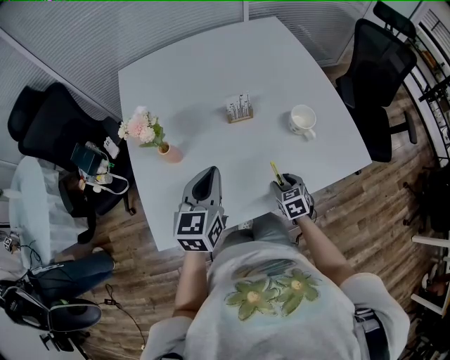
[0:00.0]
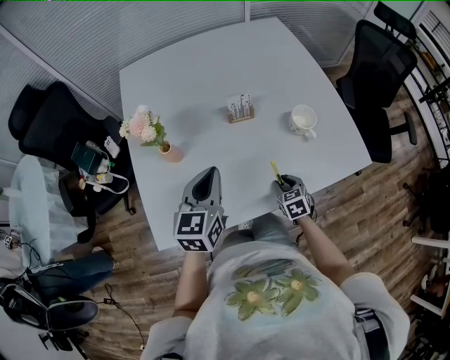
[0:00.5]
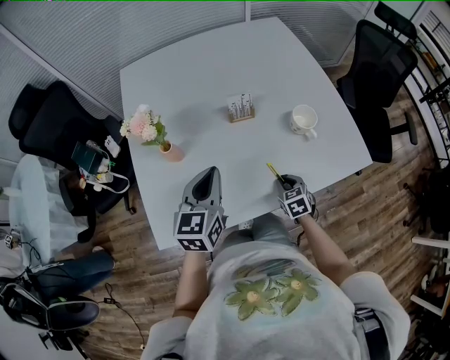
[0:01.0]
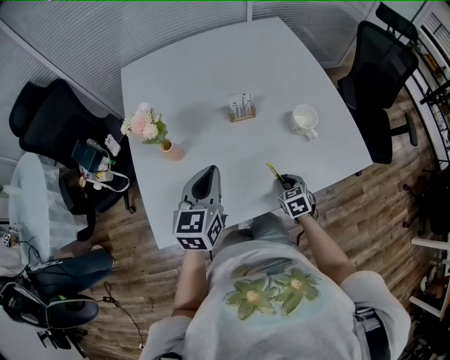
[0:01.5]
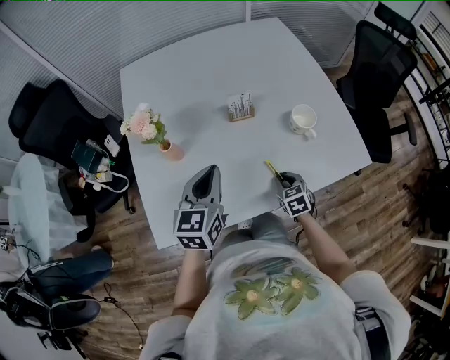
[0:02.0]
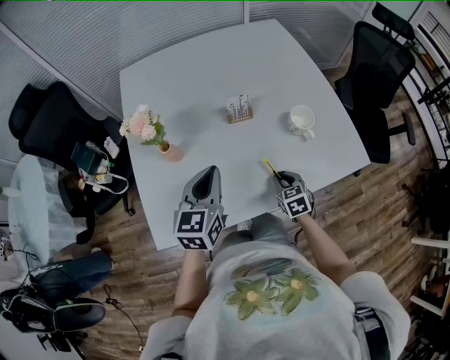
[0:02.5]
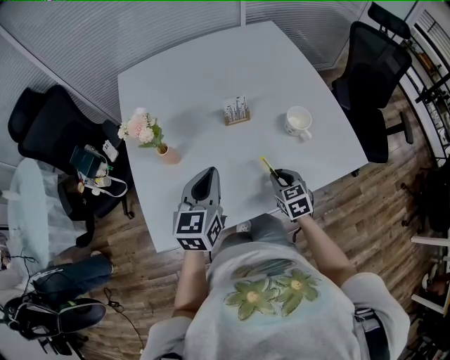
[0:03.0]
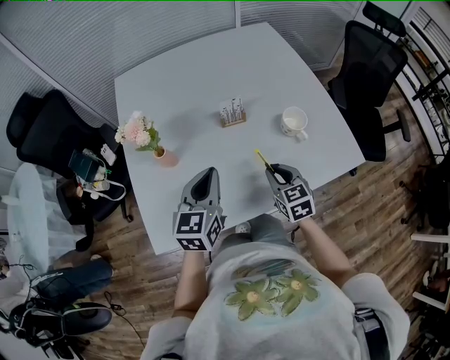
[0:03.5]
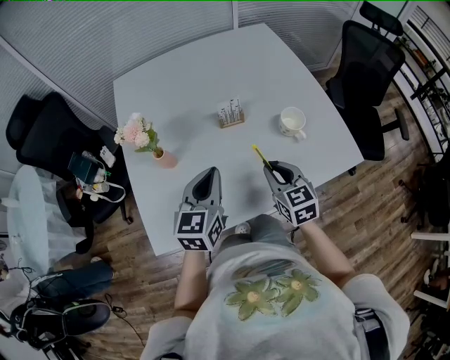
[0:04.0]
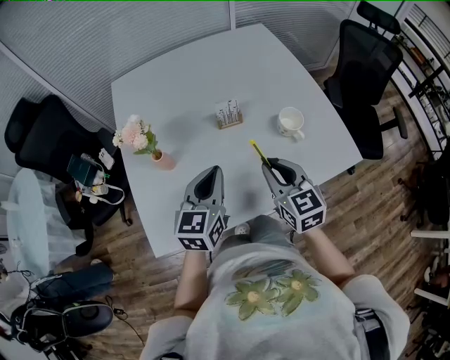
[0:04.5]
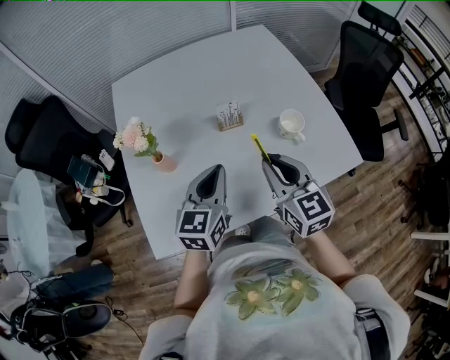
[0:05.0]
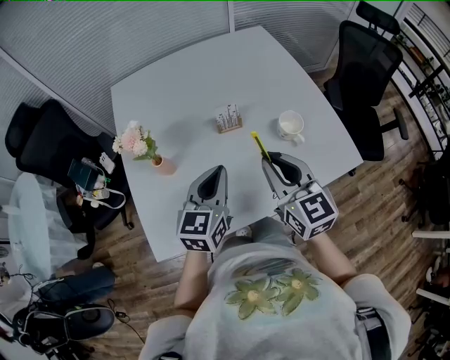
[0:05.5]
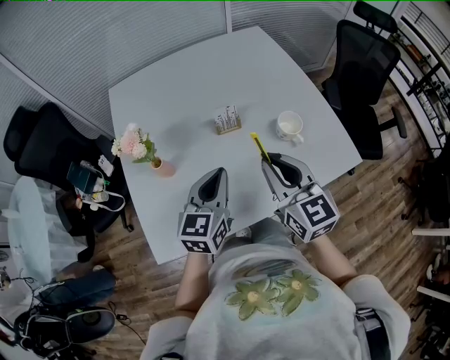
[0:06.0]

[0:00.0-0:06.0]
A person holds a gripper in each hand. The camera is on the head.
0:00.0 to 0:02.0: The right gripper closes.
0:02.0 to 0:04.0: The right gripper goes approximately 20 cm upward, and swivels about 20 degrees.
0:04.0 to 0:06.0: The right gripper is displaced upward by some 15 cm.

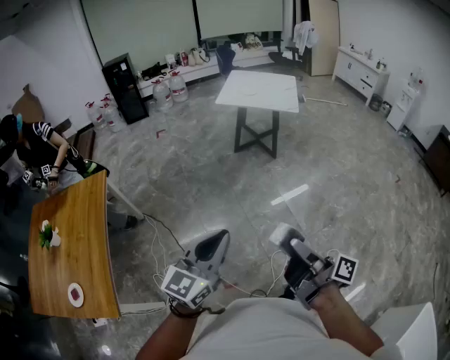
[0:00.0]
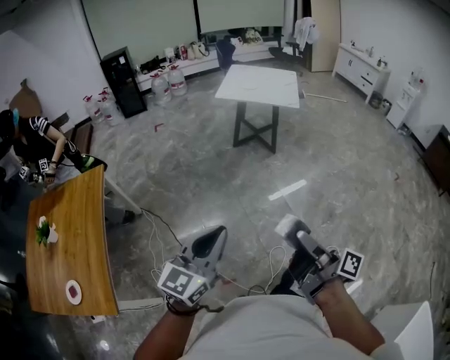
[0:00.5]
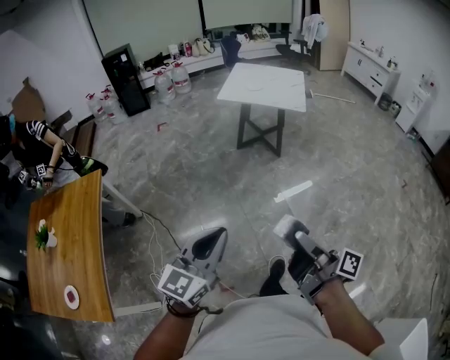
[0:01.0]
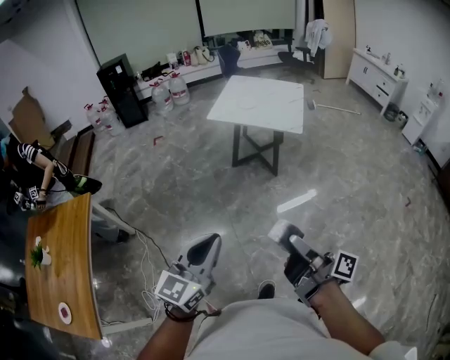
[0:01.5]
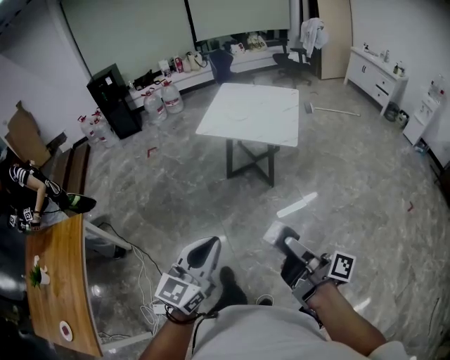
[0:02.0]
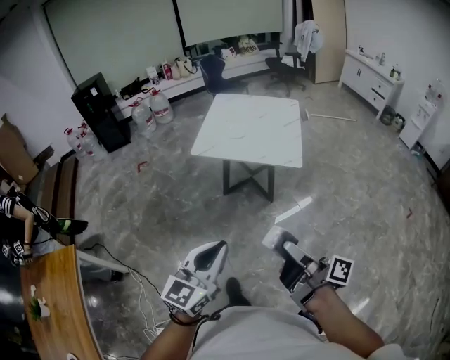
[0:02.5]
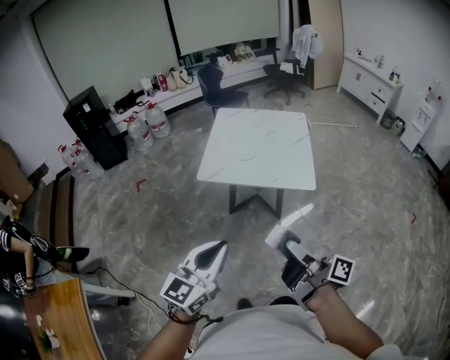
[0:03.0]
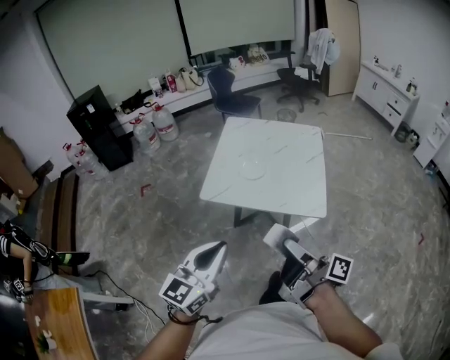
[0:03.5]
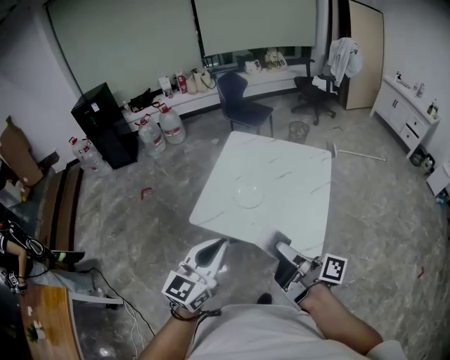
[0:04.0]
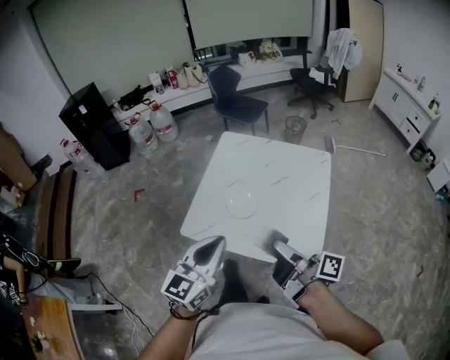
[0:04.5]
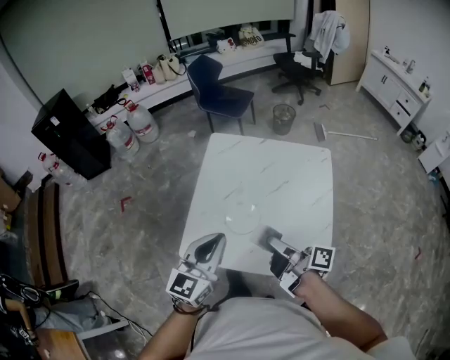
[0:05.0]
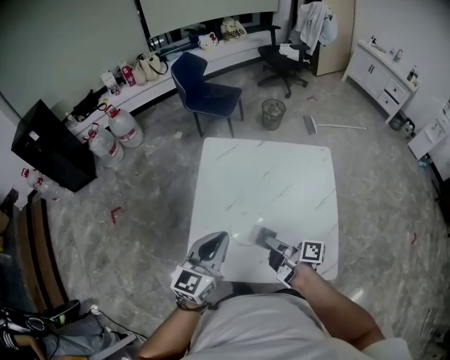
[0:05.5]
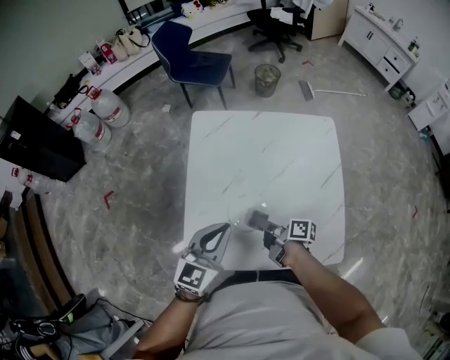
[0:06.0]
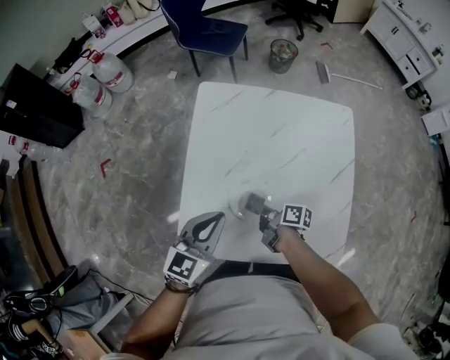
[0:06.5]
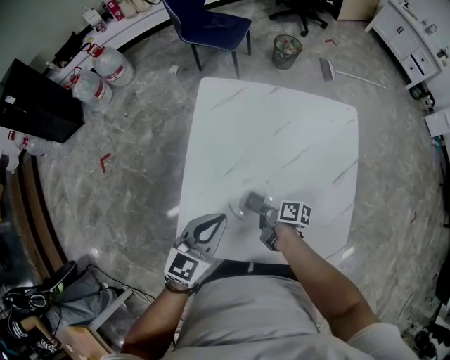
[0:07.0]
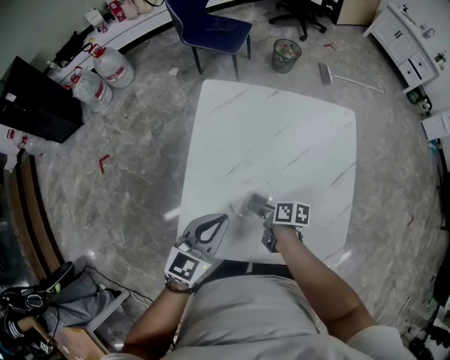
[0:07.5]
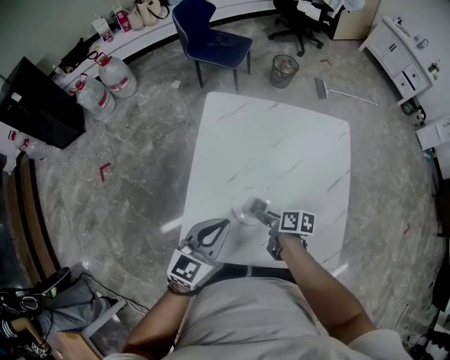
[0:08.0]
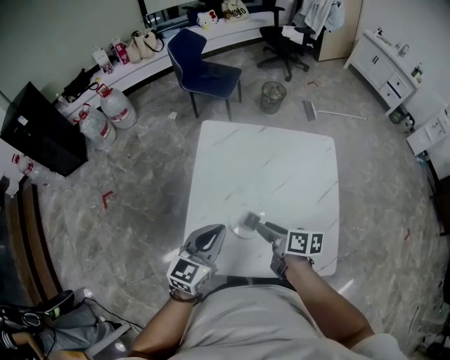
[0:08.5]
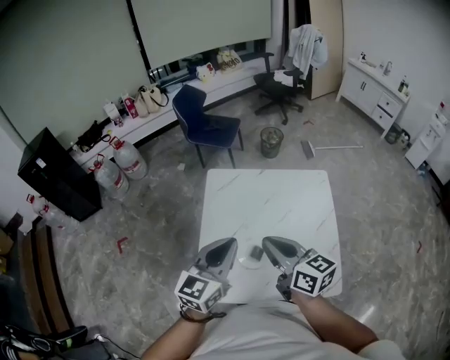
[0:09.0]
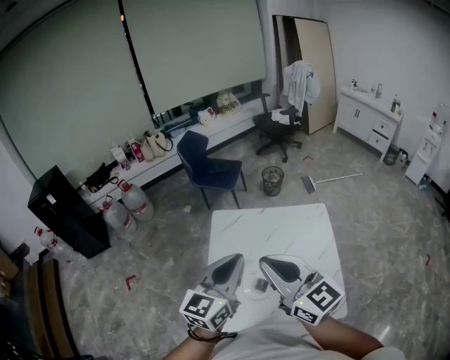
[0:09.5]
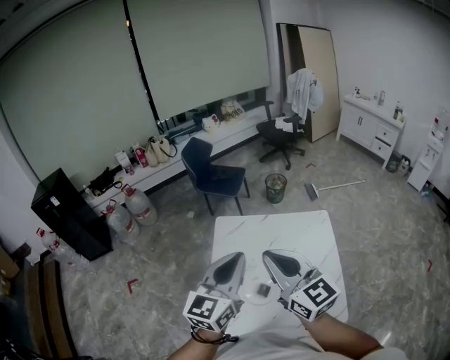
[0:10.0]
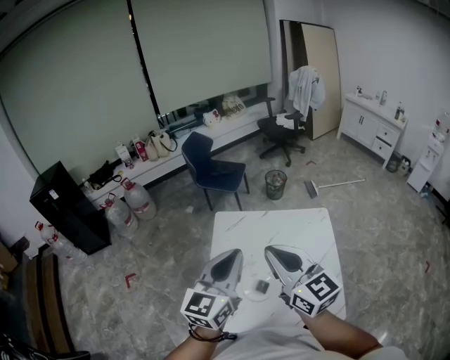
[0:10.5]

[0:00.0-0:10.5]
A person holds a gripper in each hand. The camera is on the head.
0:00.0 to 0:02.0: The left gripper ends up about 50 cm from where it was.
0:02.0 to 0:04.0: The left gripper changes place by approximately 70 cm.
0:04.0 to 0:06.5: The left gripper moves approximately 50 cm, and changes its angle by approximately 20 degrees.
0:06.5 to 0:08.5: The left gripper heads upward, covering roughly 5 cm.
0:08.5 to 0:10.5: The left gripper is displaced upward by approximately 25 cm.

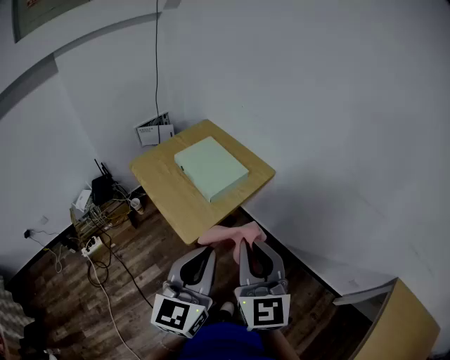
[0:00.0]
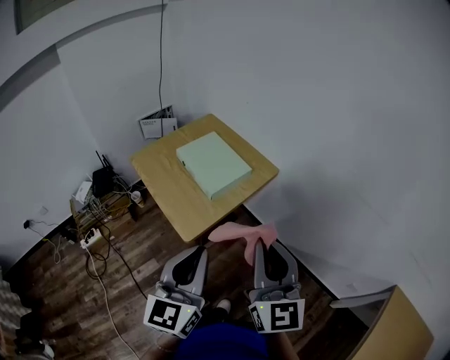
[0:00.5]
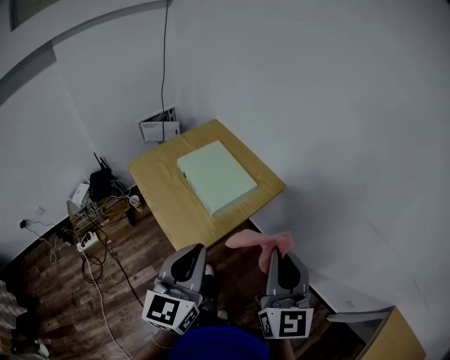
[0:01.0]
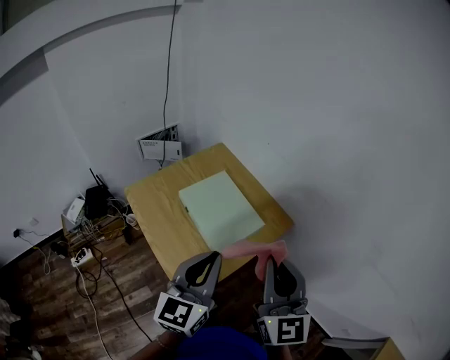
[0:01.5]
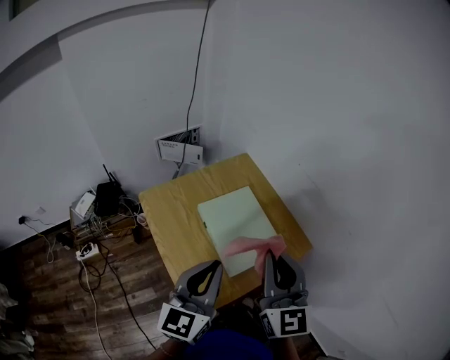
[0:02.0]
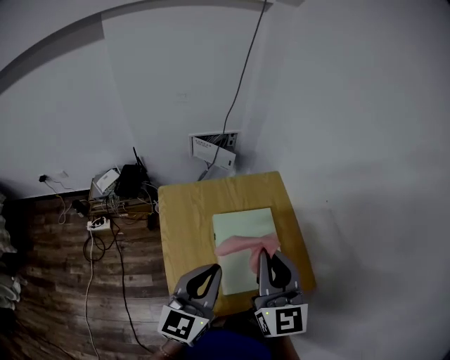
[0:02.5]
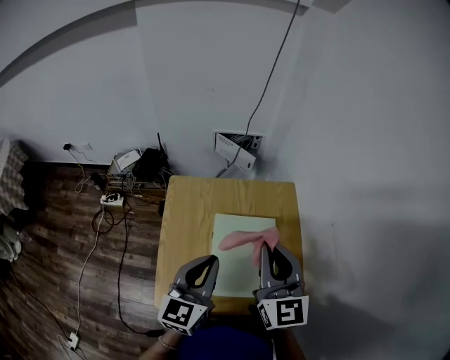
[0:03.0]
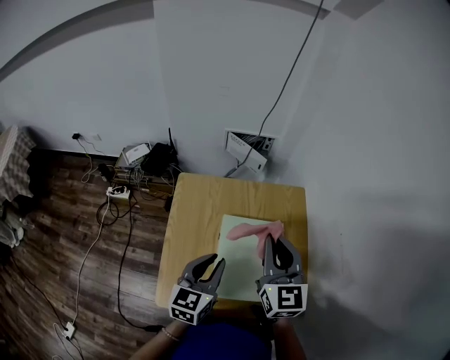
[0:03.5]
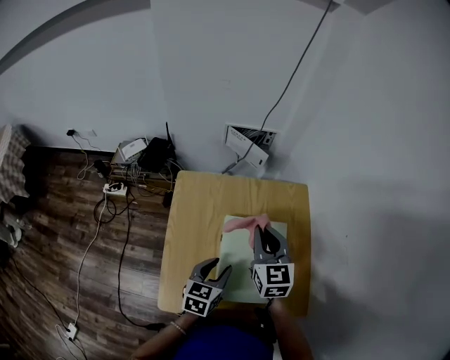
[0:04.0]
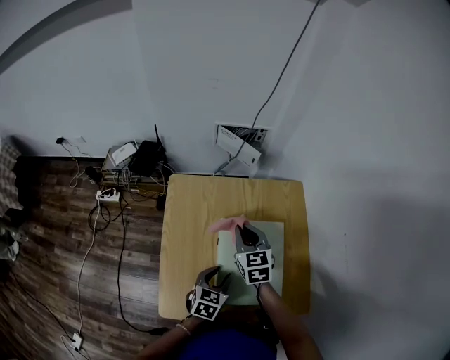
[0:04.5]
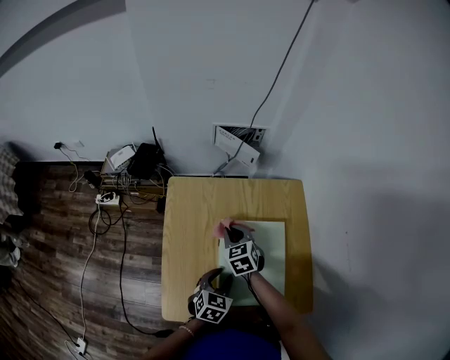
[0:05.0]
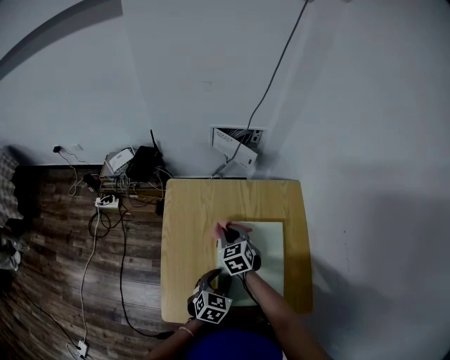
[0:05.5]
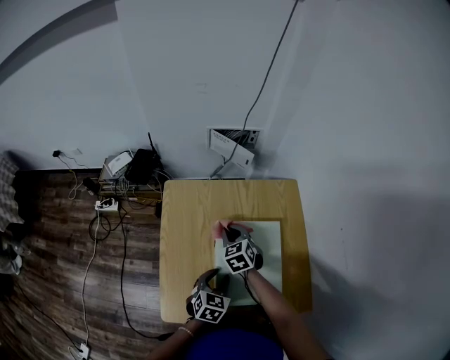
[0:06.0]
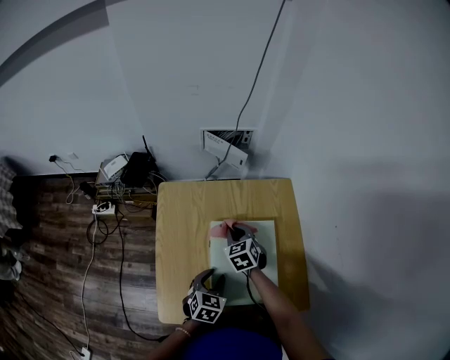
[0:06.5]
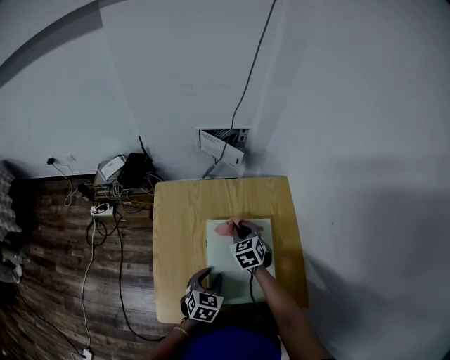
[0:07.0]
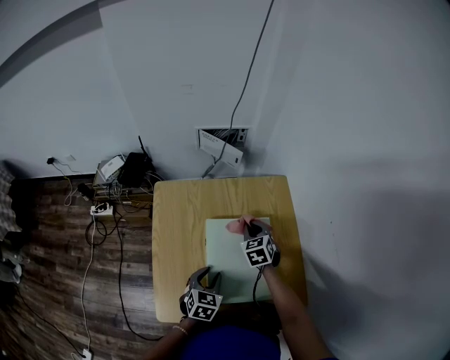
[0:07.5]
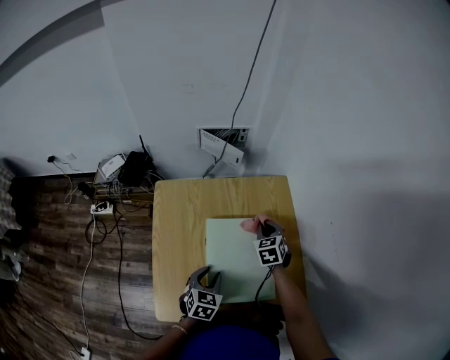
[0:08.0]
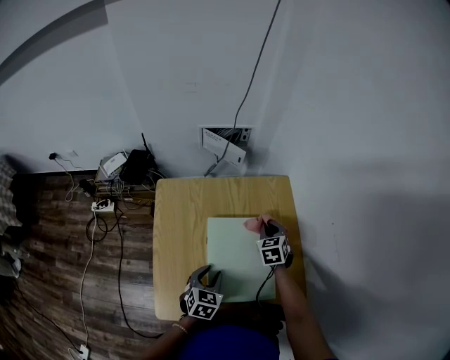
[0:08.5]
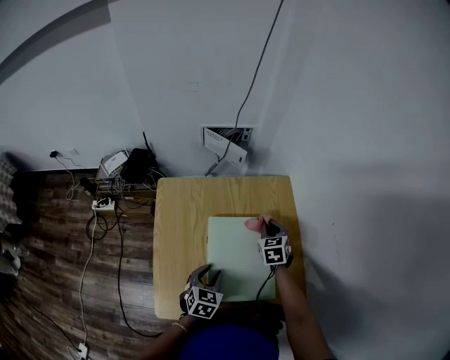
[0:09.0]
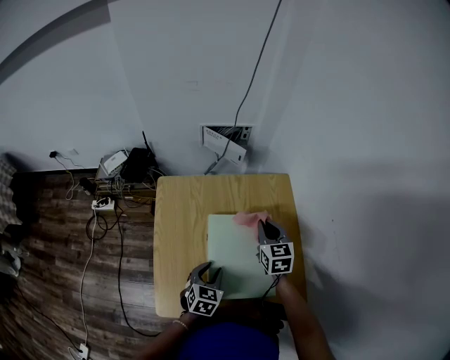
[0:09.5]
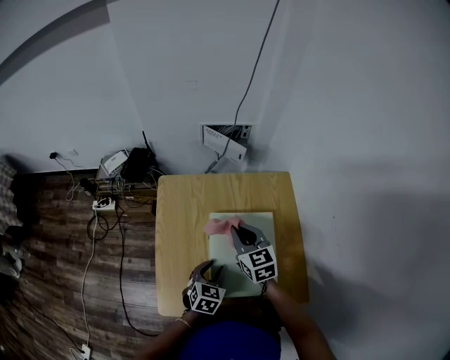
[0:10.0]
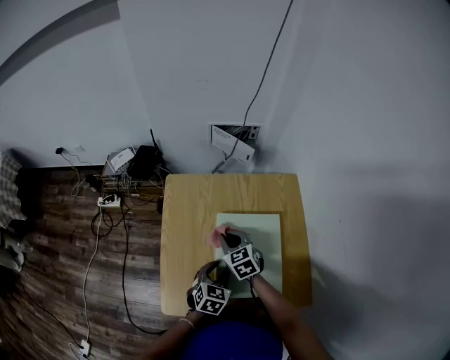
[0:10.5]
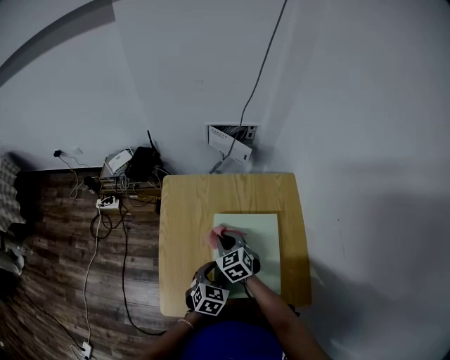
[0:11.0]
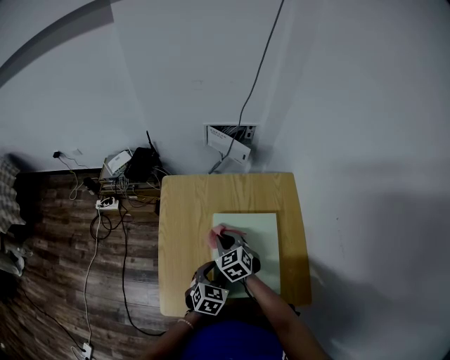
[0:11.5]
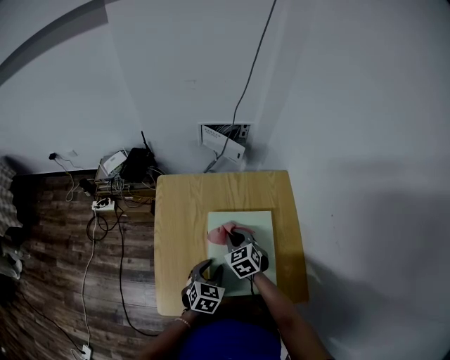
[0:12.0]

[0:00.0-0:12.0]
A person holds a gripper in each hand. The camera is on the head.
0:00.0 to 0:02.0: The two grippers go approximately 35 cm forward.
0:02.0 to 0:04.0: The right gripper moves about 30 cm, and swivels roughly 40 degrees. The left gripper heads downward, covering approximately 20 cm, swivels some 40 degrees, and opens its fingers.
0:04.0 to 0:06.0: The left gripper heads downward, covering some 5 cm, while the right gripper shifts roughly 15 cm downward, and swivels about 30 degrees.
0:06.0 to 0:08.0: The right gripper travels to the right by about 20 cm.
0:08.0 to 0:10.0: The right gripper is displaced to the left, upward and backward by some 15 cm, and turns by some 30 degrees.
0:10.0 to 0:12.0: The right gripper heads downward, covering some 10 cm, and rotates about 20 degrees.
